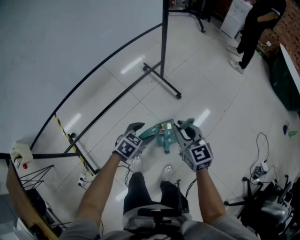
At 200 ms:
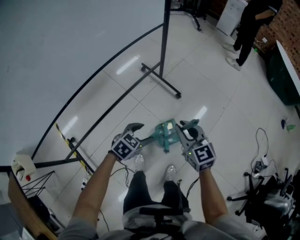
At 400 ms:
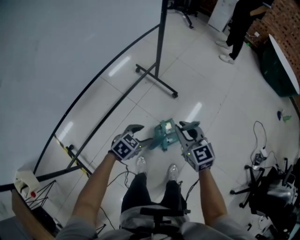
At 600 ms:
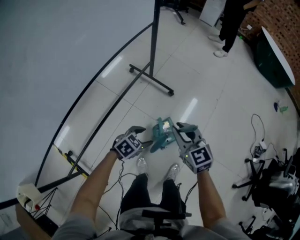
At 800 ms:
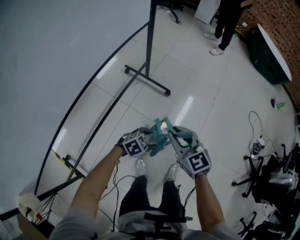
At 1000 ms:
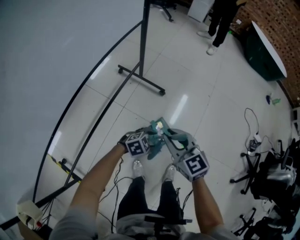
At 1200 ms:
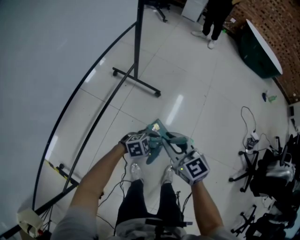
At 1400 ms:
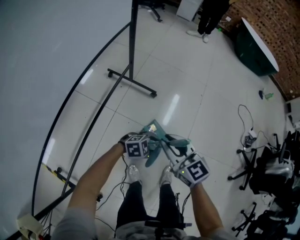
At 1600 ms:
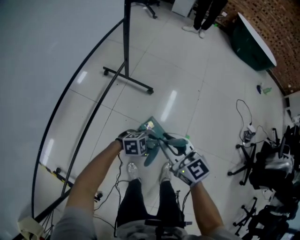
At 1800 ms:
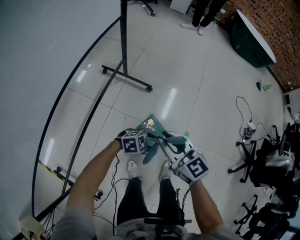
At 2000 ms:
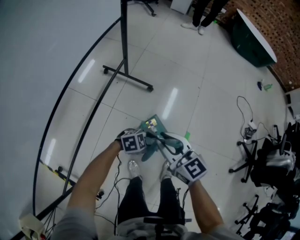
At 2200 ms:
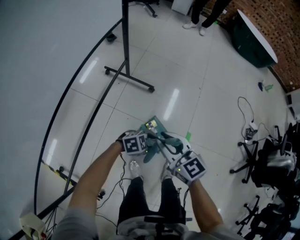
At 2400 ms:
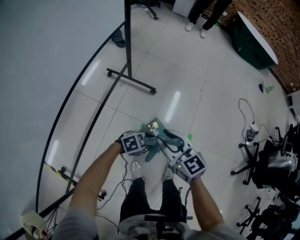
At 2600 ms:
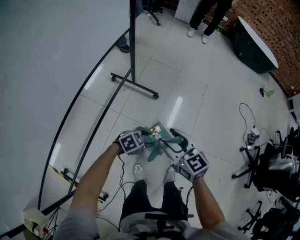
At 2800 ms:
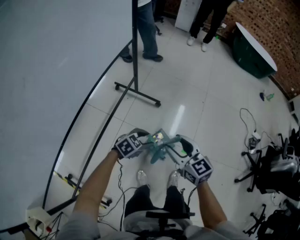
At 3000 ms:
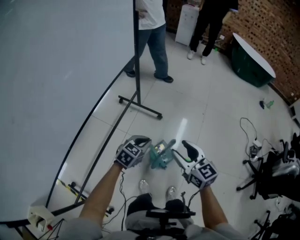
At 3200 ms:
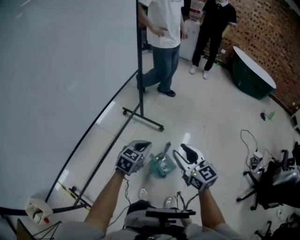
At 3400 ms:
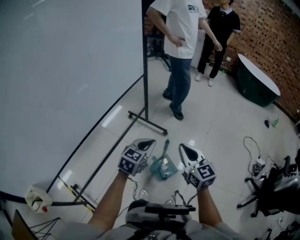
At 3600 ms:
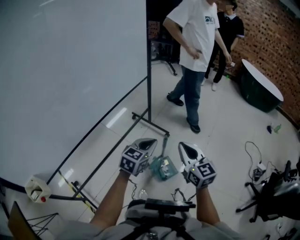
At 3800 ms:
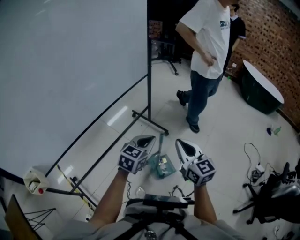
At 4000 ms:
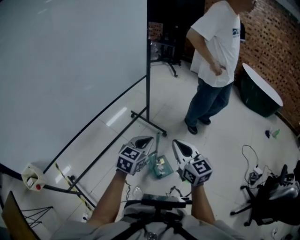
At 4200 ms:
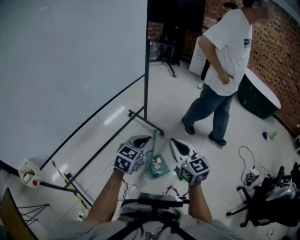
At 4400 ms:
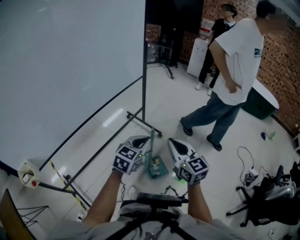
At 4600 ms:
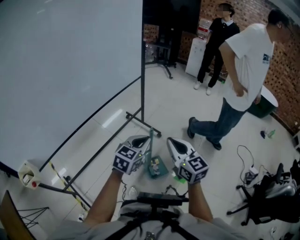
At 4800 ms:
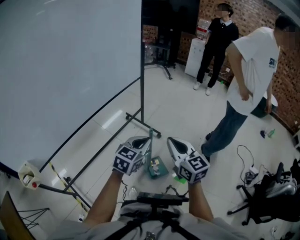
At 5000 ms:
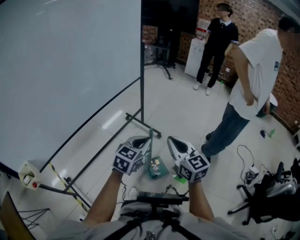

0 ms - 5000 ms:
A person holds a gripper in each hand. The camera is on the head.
0 ms - 1600 ms: The right gripper ends up roughly 5 cm from where it was. The left gripper shifts about 5 cm downward, and changes its angle by roughly 70 degrees.
1600 ms - 3400 ms: The right gripper goes about 10 cm upward, and opens, then closes once more, while the left gripper travels upward by some 25 cm, changes its angle by some 60 degrees, and closes up.
3400 ms - 5000 ms: The right gripper shifts approximately 5 cm upward. The left gripper travels backward and upward by approximately 10 cm.

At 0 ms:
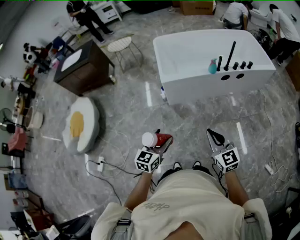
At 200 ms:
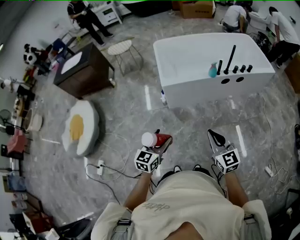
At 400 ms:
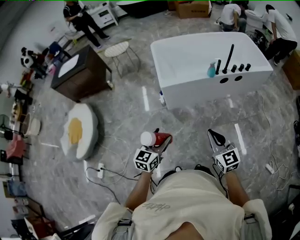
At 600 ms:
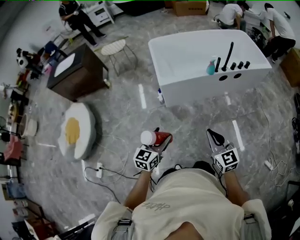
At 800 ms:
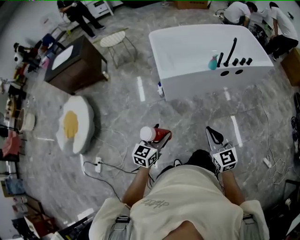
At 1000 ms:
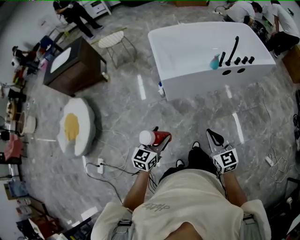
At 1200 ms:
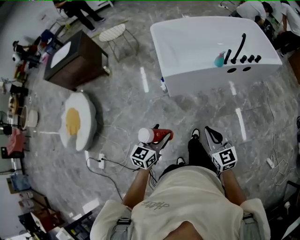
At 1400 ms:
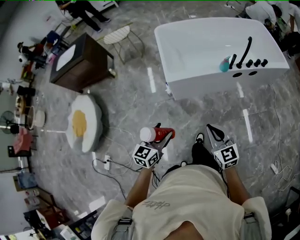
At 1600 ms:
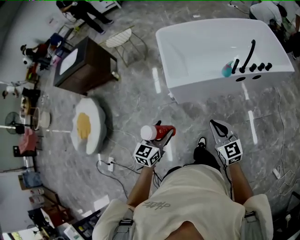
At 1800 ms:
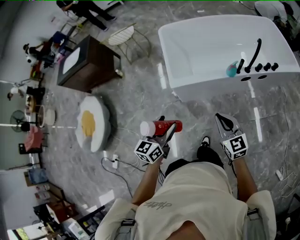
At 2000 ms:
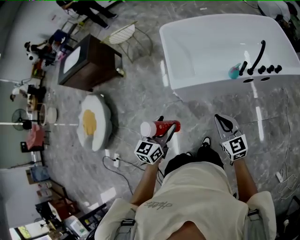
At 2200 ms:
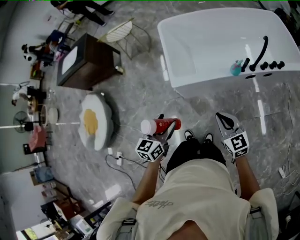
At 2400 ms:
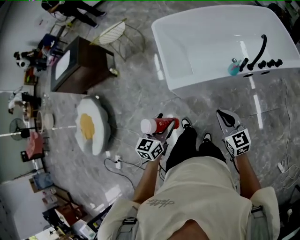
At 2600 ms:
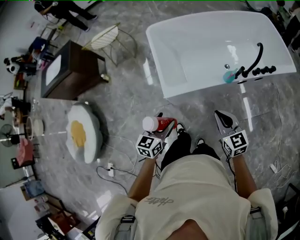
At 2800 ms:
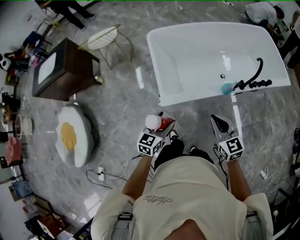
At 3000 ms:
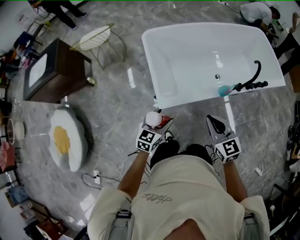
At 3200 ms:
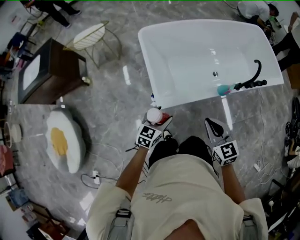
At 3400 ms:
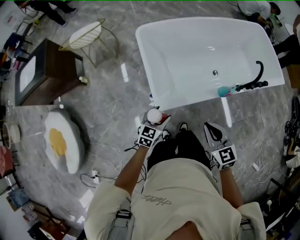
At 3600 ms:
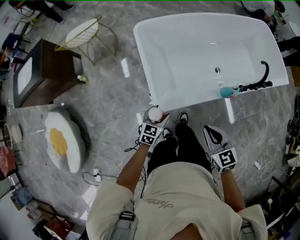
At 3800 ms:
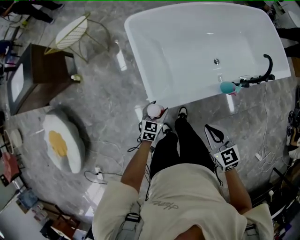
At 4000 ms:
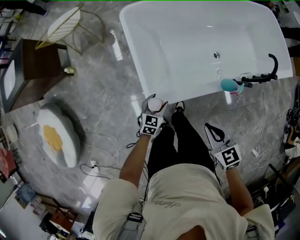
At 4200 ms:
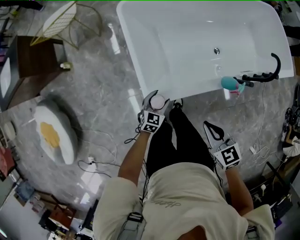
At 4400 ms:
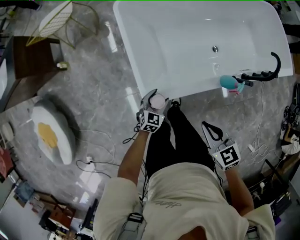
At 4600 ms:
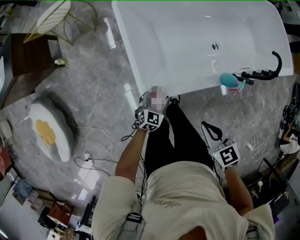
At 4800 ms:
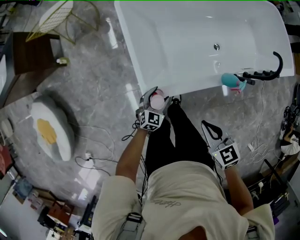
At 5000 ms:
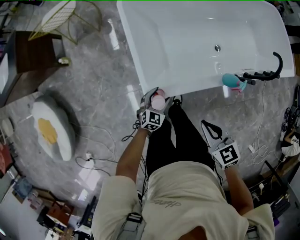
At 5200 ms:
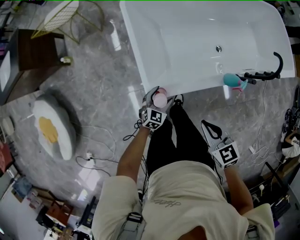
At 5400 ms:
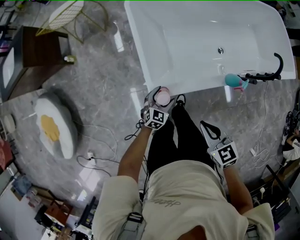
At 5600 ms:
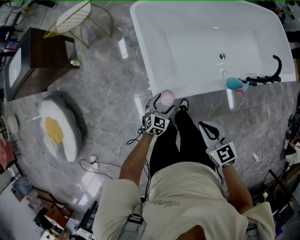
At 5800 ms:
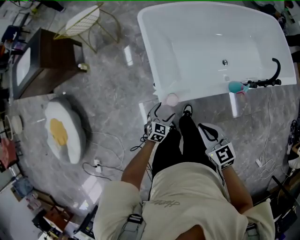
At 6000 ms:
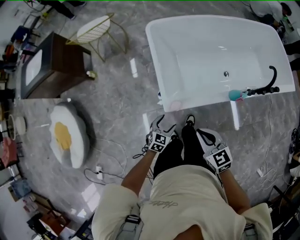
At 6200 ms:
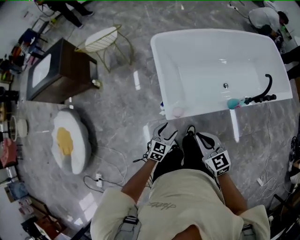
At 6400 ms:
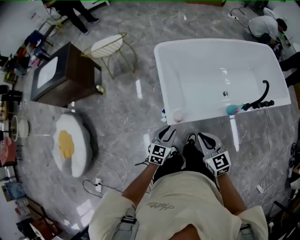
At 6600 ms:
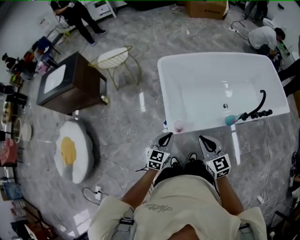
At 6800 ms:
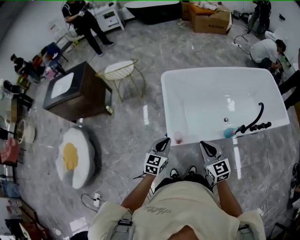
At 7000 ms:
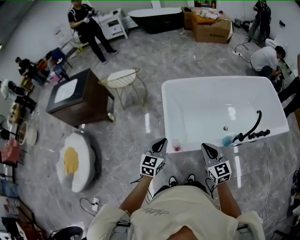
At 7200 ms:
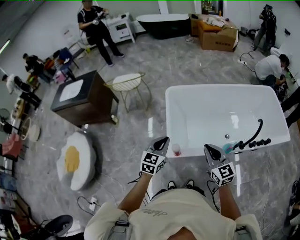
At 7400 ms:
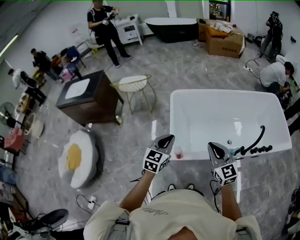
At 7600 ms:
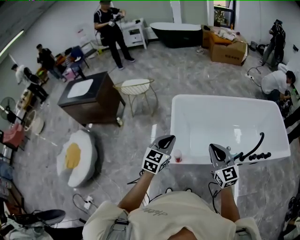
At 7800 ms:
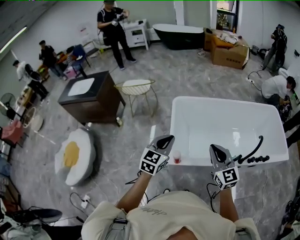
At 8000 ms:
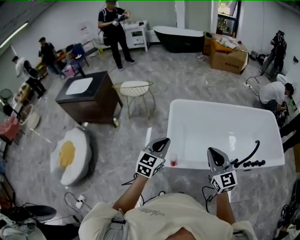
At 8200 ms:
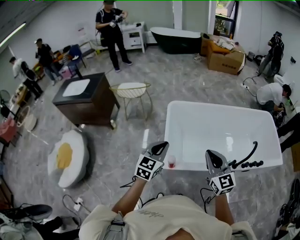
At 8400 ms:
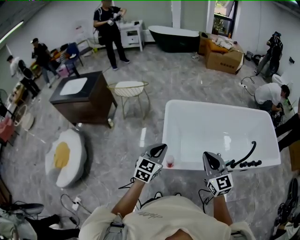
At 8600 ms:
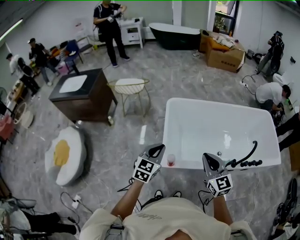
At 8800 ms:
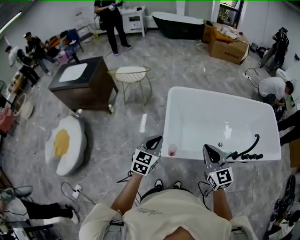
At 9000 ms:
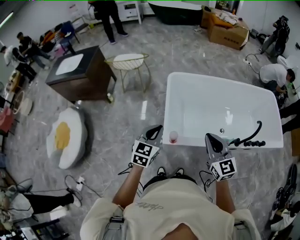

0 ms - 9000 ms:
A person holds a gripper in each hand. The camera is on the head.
0 ms - 1600 ms: Both grippers move forward, approximately 20 cm.
1600 ms - 3000 ms: Both grippers travel together forward, some 25 cm.
3000 ms - 4400 ms: The left gripper goes about 25 cm downward and forward, while the right gripper goes some 10 cm downward, and turns by approximately 20 degrees.
4400 ms - 6000 ms: The left gripper heads backward and to the left, covering approximately 10 cm, while the right gripper heads to the left, covering approximately 10 cm.
6000 ms - 7600 ms: The right gripper shifts roughly 20 cm upward, forward and to the right, and swivels about 30 degrees; the left gripper goes approximately 35 cm upward, turns by about 30 degrees, and closes.
7600 ms - 9000 ms: The left gripper moves some 5 cm.

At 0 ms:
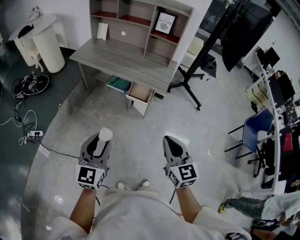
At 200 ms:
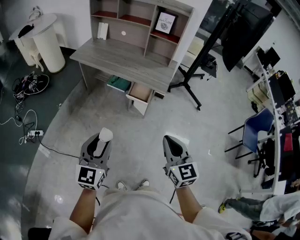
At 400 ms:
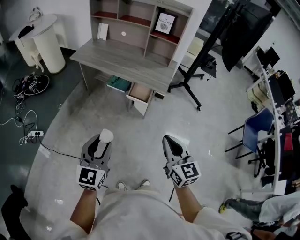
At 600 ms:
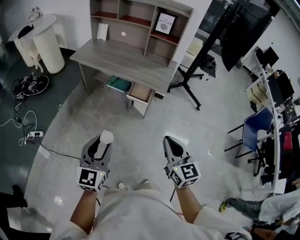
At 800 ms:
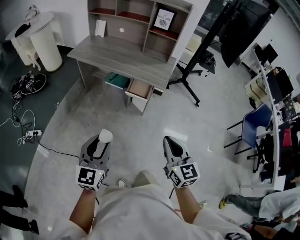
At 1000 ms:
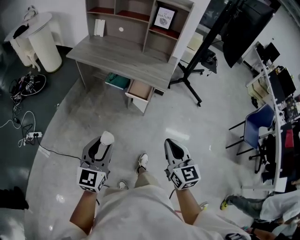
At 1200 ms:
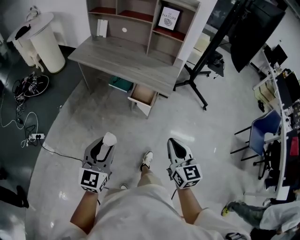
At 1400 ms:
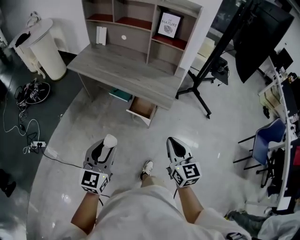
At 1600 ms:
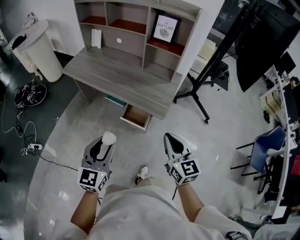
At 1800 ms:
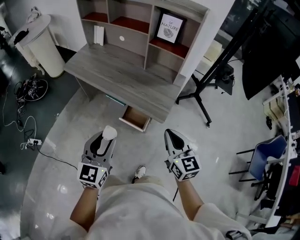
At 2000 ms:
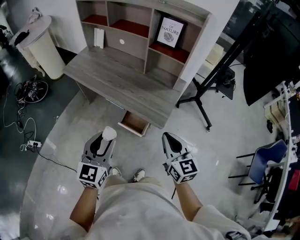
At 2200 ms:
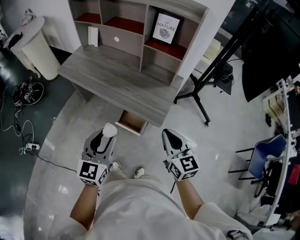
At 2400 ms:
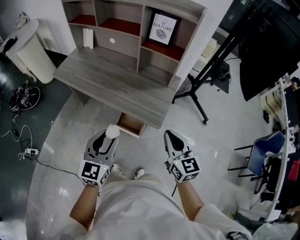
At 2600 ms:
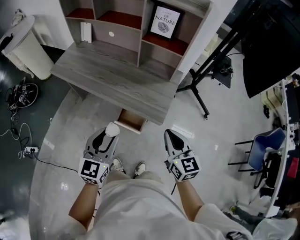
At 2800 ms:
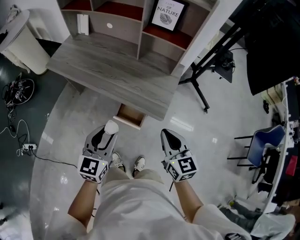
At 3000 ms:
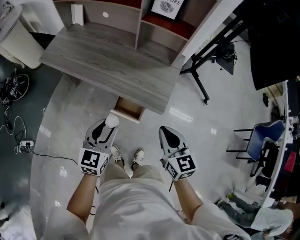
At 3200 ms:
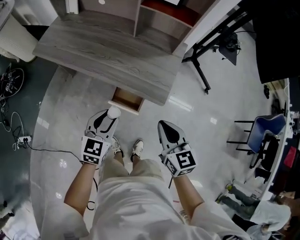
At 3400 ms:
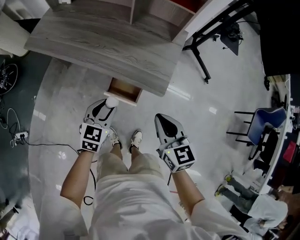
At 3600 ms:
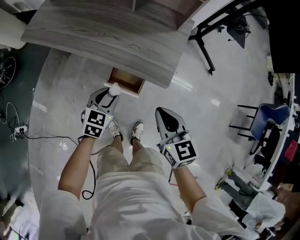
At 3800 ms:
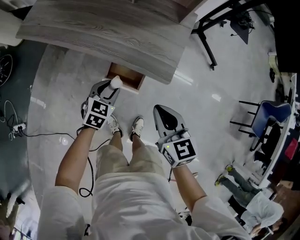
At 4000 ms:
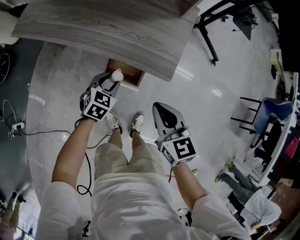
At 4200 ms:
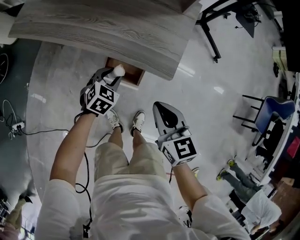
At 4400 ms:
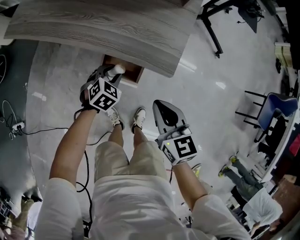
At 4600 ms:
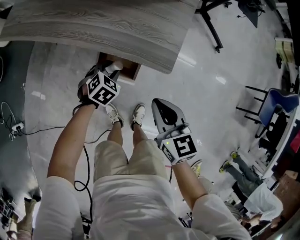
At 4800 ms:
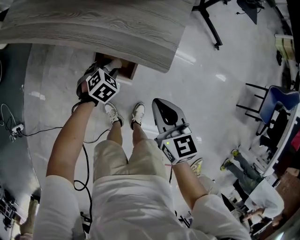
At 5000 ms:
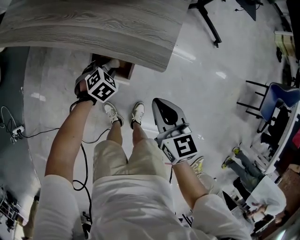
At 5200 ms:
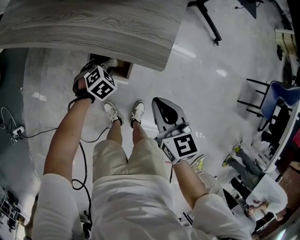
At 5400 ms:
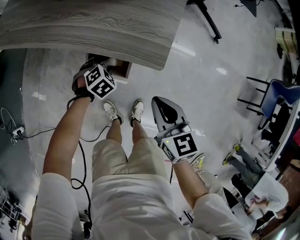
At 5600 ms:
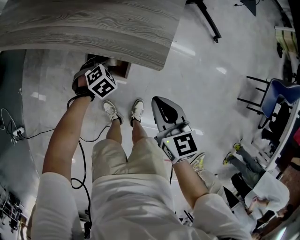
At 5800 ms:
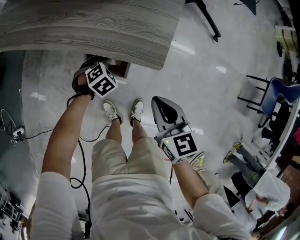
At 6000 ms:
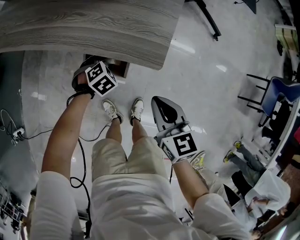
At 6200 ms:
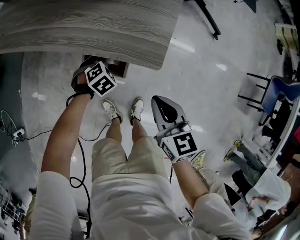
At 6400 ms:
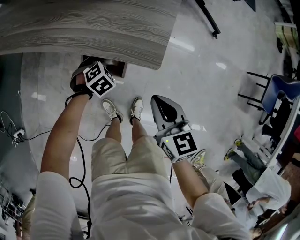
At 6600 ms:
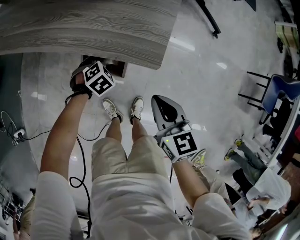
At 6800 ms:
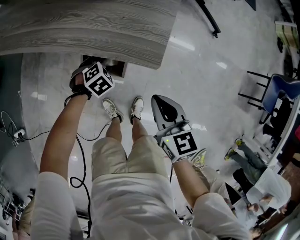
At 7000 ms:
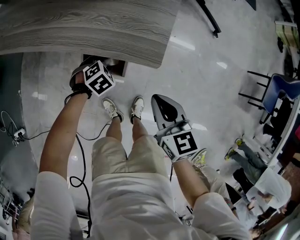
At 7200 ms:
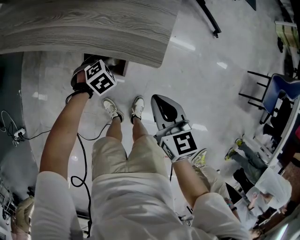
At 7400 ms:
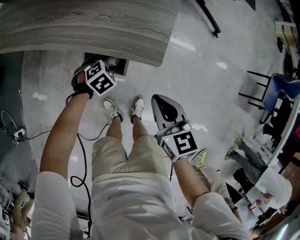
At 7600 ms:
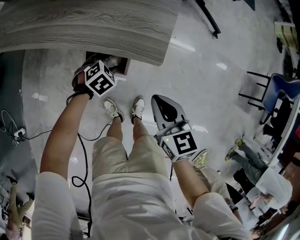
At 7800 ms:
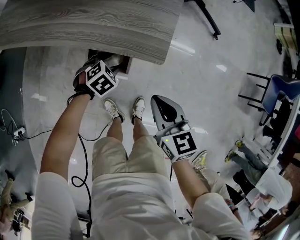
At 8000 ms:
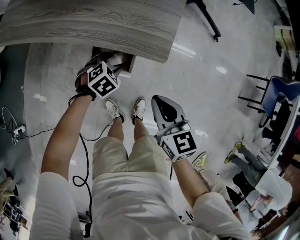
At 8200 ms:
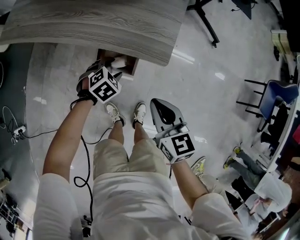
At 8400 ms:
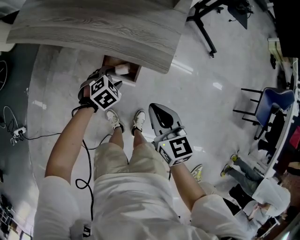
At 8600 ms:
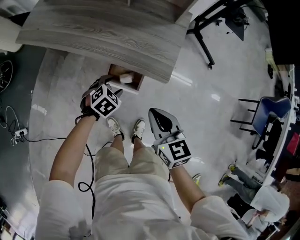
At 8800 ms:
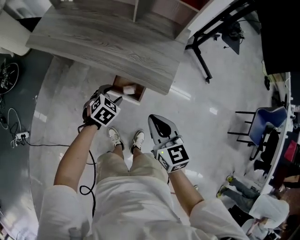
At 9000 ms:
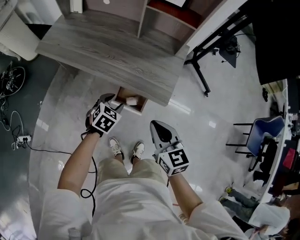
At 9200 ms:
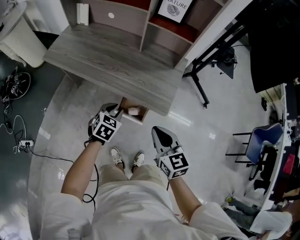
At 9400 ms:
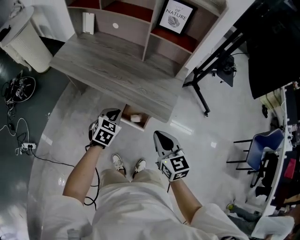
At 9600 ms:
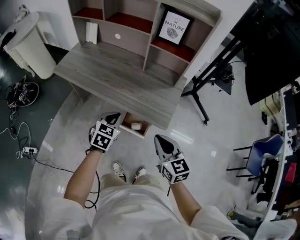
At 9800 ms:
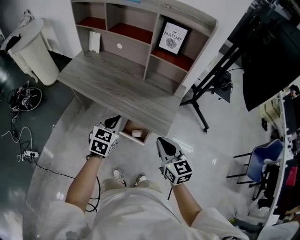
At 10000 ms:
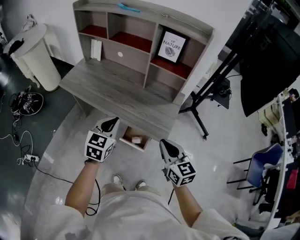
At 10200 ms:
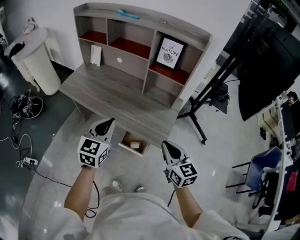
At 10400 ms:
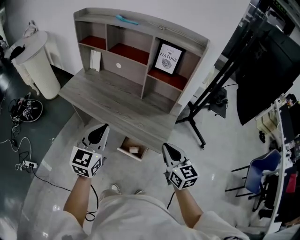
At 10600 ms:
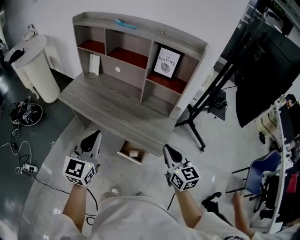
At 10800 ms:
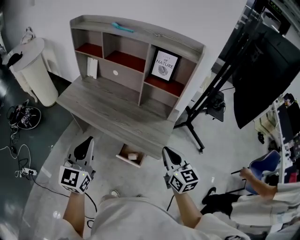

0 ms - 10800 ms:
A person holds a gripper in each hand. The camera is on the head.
0 ms - 1600 ms: The right gripper shifts approximately 25 cm forward; the left gripper shifts approximately 25 cm forward and to the right.
1600 ms - 3000 ms: Both grippers travel together forward and downward, about 15 cm.
3000 ms - 4600 ms: The right gripper goes about 20 cm downward. Meanwhile the left gripper heads downward, covering about 35 cm, and angles its fingers downward, by about 40 degrees.
4600 ms - 6200 ms: The left gripper moves some 5 cm.
6200 ms - 7800 ms: The grippers make only small movements.
7800 ms - 9200 ms: The left gripper is displaced upward by approximately 25 cm, rotates approximately 40 degrees, and closes up; the right gripper goes about 20 cm upward and to the left.
9200 ms - 10800 ms: The left gripper shifts roughly 30 cm upward, tilts its fingers approximately 40 degrees upward, and closes its fingers. Meanwhile the right gripper shifts about 15 cm upward and to the right.
